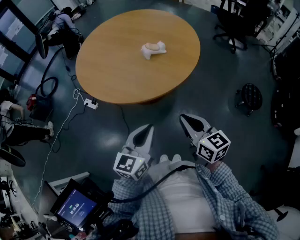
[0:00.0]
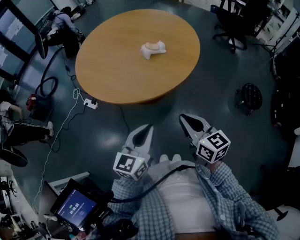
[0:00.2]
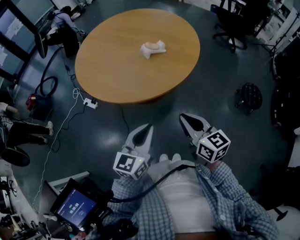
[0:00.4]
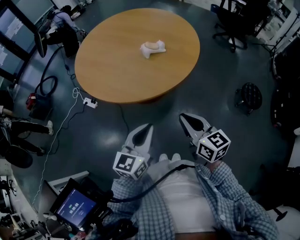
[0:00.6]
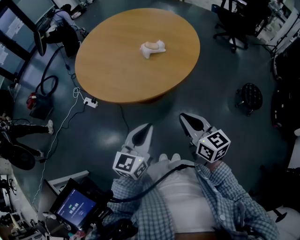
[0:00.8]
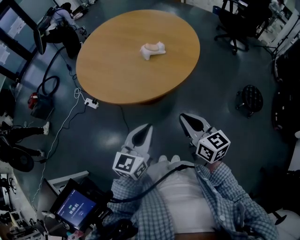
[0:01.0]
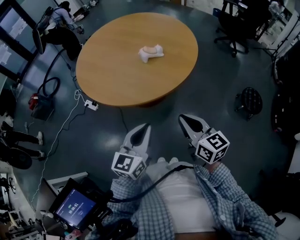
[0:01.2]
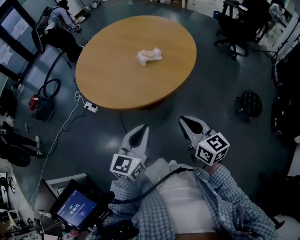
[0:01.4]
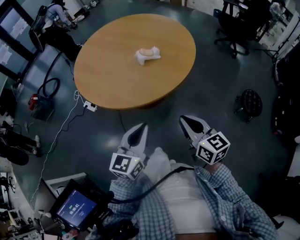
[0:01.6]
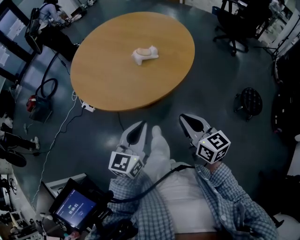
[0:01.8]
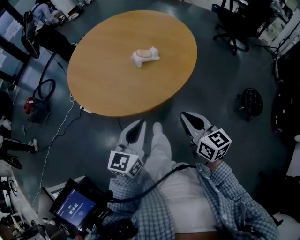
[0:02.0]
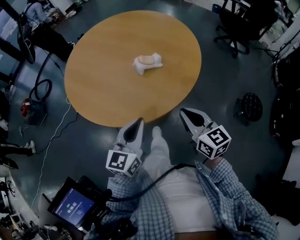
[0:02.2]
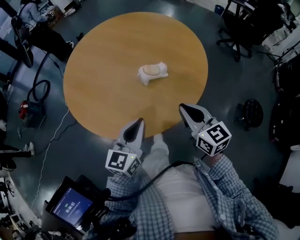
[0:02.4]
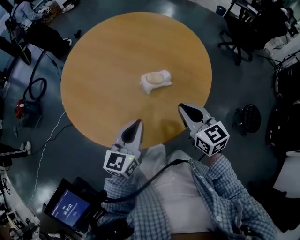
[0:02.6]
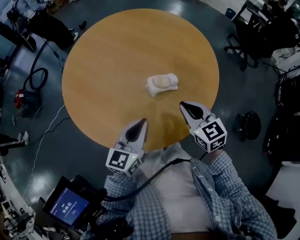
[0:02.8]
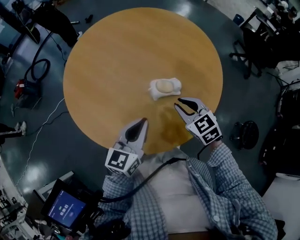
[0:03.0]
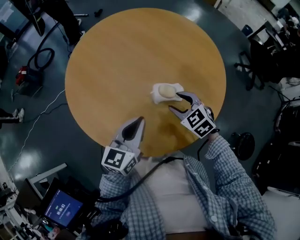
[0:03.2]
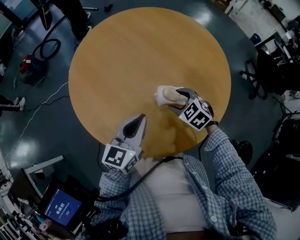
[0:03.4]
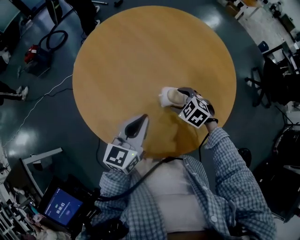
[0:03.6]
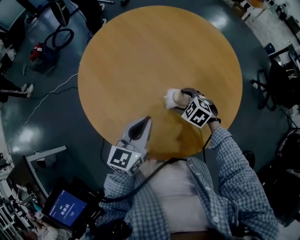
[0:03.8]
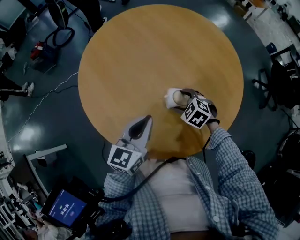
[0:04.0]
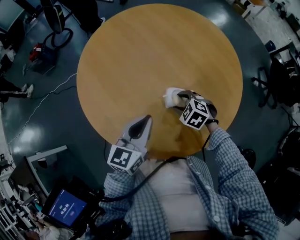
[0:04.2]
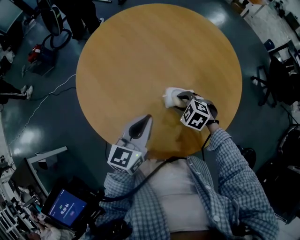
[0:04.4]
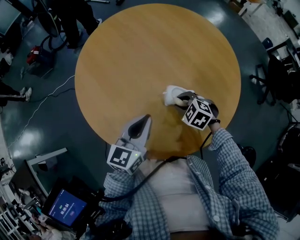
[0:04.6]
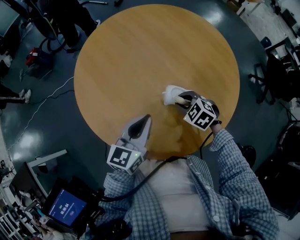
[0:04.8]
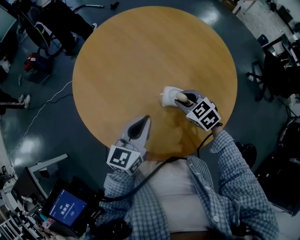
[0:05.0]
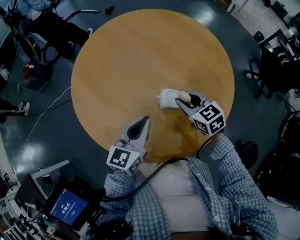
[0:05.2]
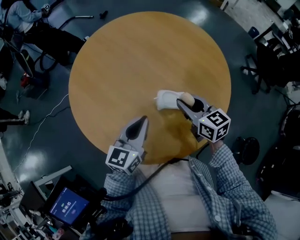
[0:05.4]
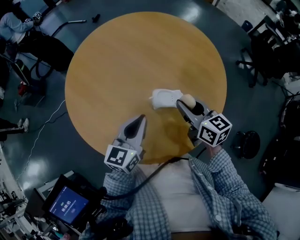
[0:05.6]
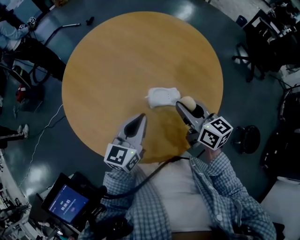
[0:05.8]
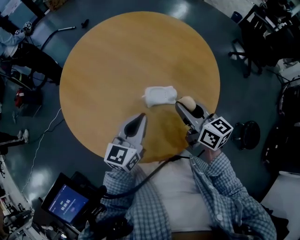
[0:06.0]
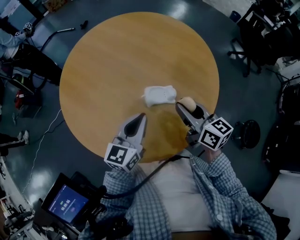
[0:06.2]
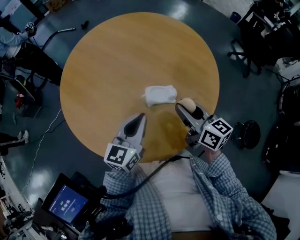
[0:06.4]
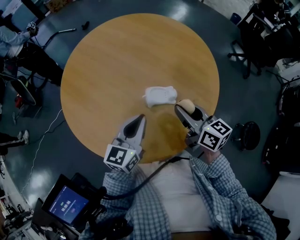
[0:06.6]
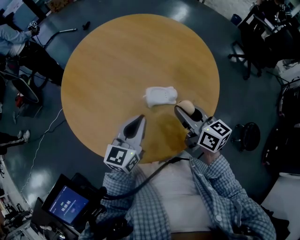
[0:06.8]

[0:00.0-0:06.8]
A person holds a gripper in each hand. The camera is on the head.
0:00.0 to 0:01.4: The grippers stay close to where they were, moving slightly.
0:01.4 to 0:02.8: The grippers both shift forward by approximately 30 cm. The right gripper changes its angle by approximately 30 degrees.
0:02.8 to 0:04.0: The right gripper shifts approximately 15 cm downward, angles its fingers downward, by approximately 40 degrees, and opens; the left gripper changes place by approximately 5 cm.
0:04.0 to 0:05.4: The right gripper is displaced upward by about 15 cm, angles its fingers upward, by roughly 40 degrees, and closes.
0:05.4 to 0:06.8: The right gripper is displaced backward by roughly 5 cm, and swivels about 20 degrees.

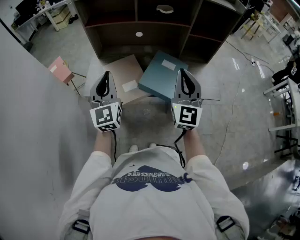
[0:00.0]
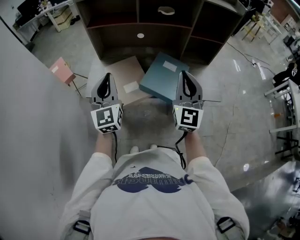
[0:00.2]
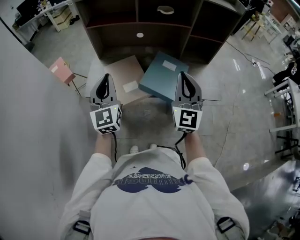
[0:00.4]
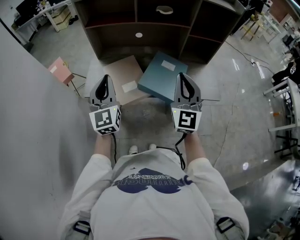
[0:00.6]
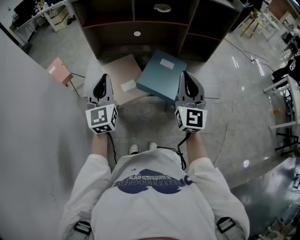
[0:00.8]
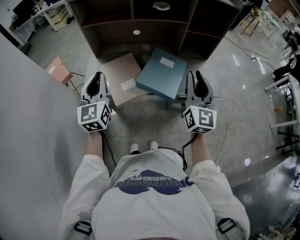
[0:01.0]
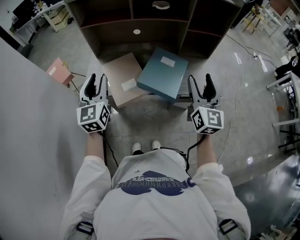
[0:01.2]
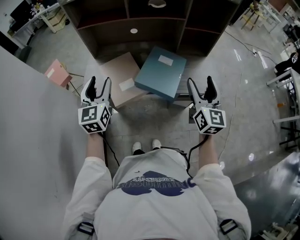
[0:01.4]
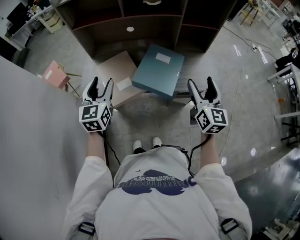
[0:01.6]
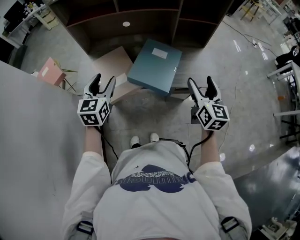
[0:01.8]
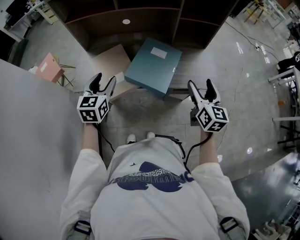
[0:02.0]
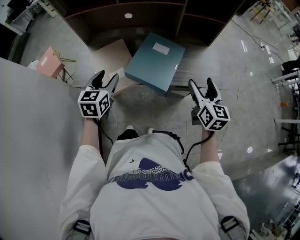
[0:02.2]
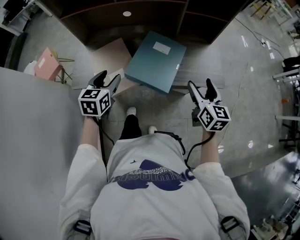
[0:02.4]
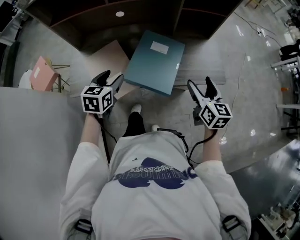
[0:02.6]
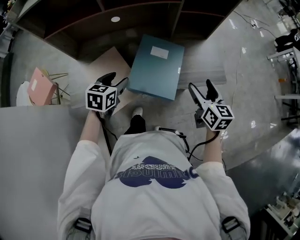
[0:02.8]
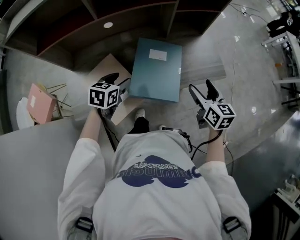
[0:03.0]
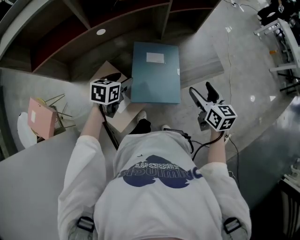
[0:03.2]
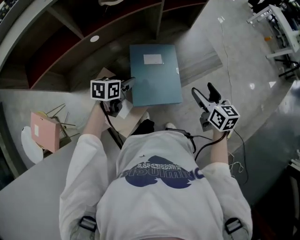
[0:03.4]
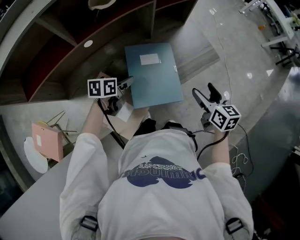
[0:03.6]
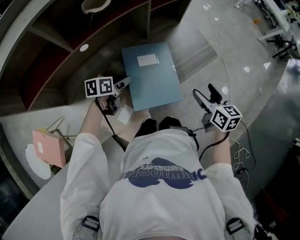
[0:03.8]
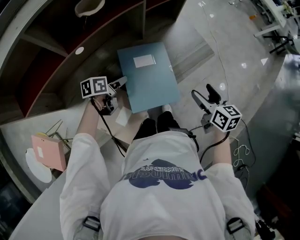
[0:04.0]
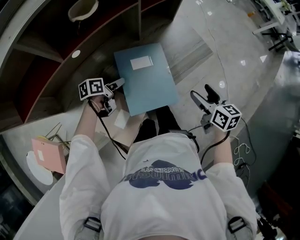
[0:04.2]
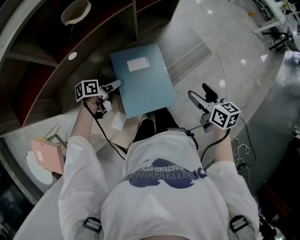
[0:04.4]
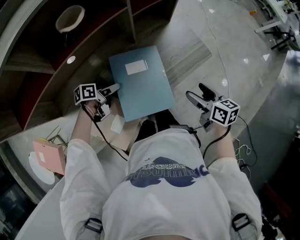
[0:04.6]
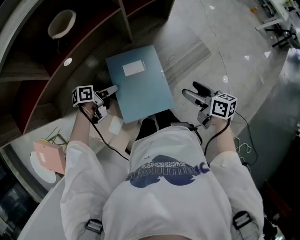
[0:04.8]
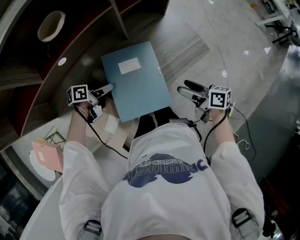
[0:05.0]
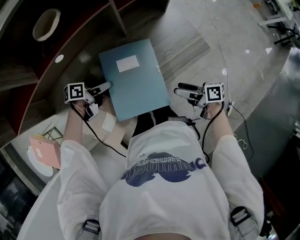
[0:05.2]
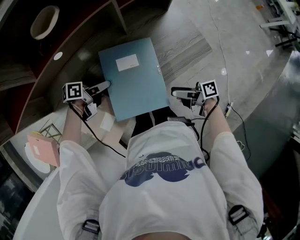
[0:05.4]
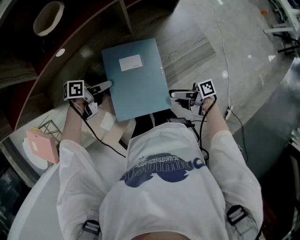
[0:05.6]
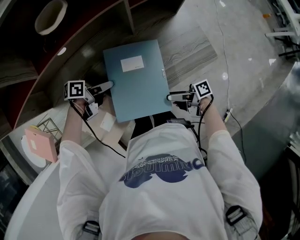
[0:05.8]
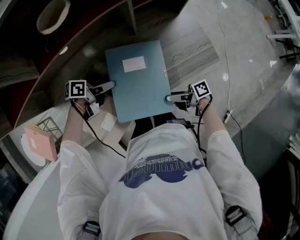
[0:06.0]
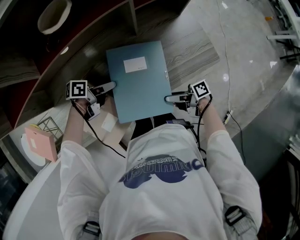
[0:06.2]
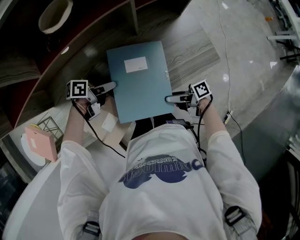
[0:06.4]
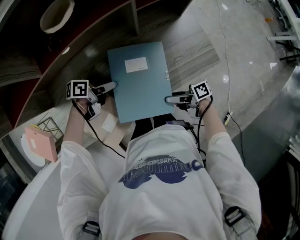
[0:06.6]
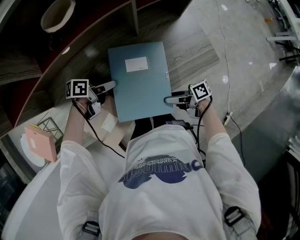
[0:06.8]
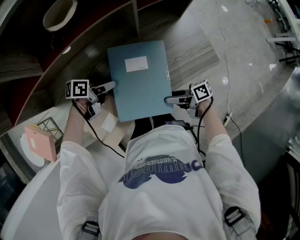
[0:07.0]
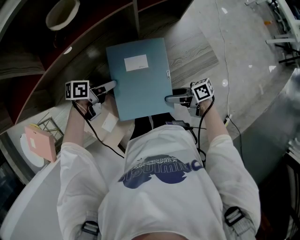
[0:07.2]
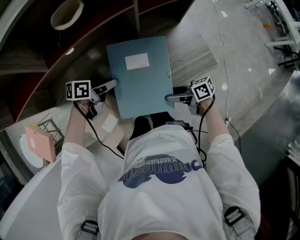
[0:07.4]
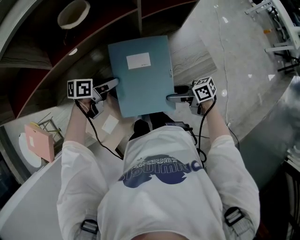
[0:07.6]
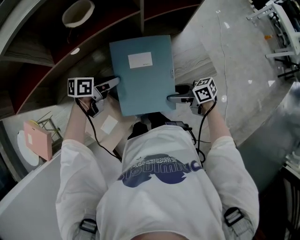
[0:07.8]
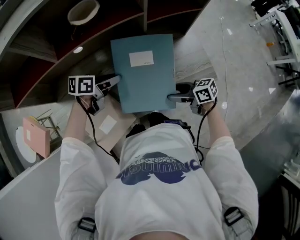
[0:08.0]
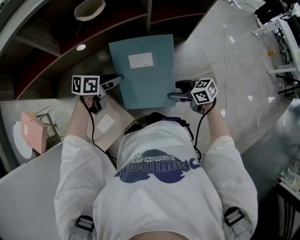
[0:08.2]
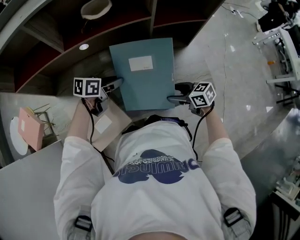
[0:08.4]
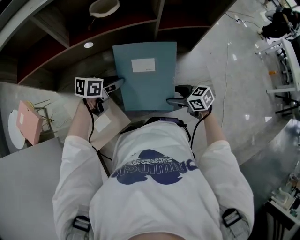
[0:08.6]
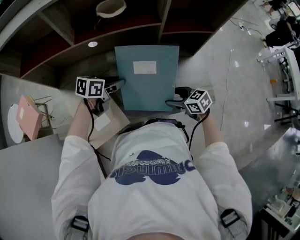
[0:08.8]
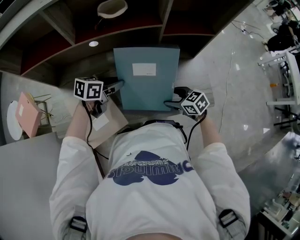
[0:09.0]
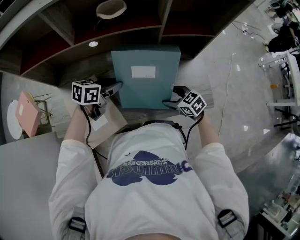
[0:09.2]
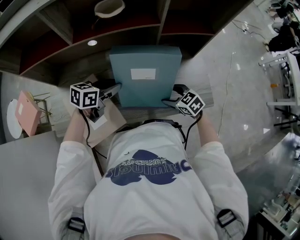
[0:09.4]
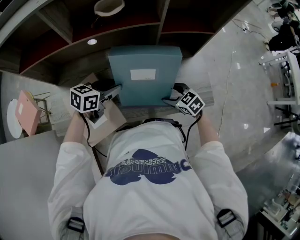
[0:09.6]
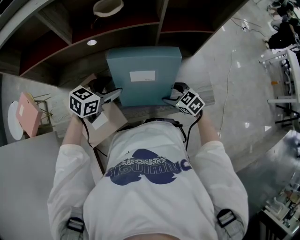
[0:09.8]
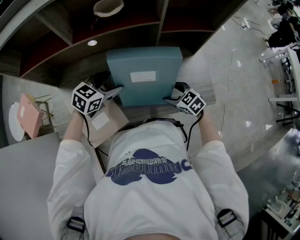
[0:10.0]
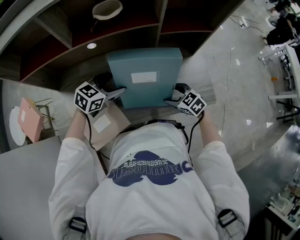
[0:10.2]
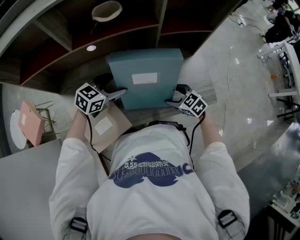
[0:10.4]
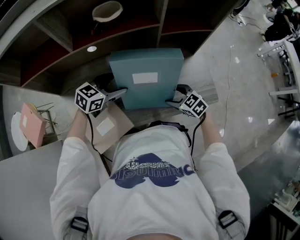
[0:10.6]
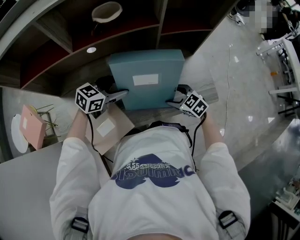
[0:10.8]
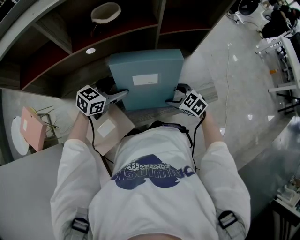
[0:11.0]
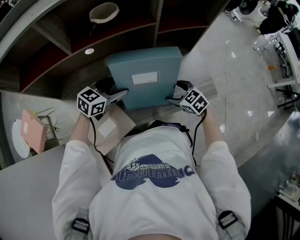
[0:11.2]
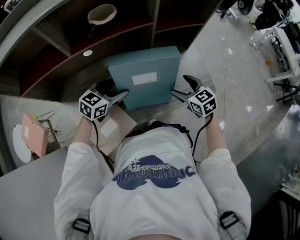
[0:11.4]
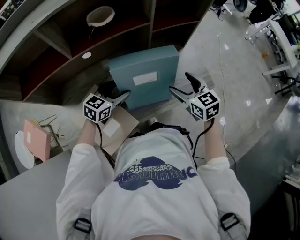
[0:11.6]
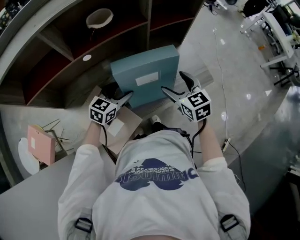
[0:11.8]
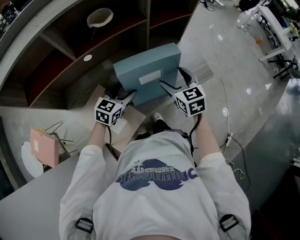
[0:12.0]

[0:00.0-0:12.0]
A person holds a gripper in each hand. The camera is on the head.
0:00.0 to 0:01.6: The right gripper travels to the right and downward by roughly 15 cm, turns by roughly 30 degrees, and opens up. Meanwhile the left gripper travels downward by approximately 5 cm, swivels roughly 20 degrees, and opens.
0:01.6 to 0:03.0: The left gripper shifts approximately 25 cm forward and downward, and angles its fingers downward, by some 30 degrees. The right gripper goes some 15 cm downward and forward, and swivels approximately 30 degrees.
0:03.0 to 0:04.4: The right gripper ends up roughly 5 cm from where it was. The left gripper goes roughly 15 cm forward and downward, and swivels roughly 50 degrees.
0:04.4 to 0:06.0: The right gripper shifts approximately 15 cm downward, and rotates some 70 degrees.
0:06.0 to 0:07.6: The right gripper shifts by approximately 5 cm, and rotates approximately 30 degrees; the left gripper travels upward by approximately 5 cm.
0:07.6 to 0:09.0: The right gripper shifts by approximately 5 cm, and twists roughly 40 degrees counterclockwise, seen from behind; the left gripper swivels roughly 20 degrees.
0:09.0 to 0:10.4: The left gripper turns by about 30 degrees, and opens.
0:10.4 to 0:12.0: The right gripper travels upward by roughly 15 cm, and rotates some 50 degrees.

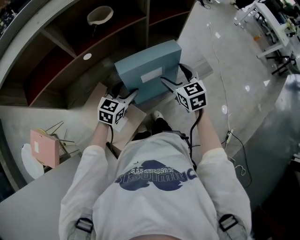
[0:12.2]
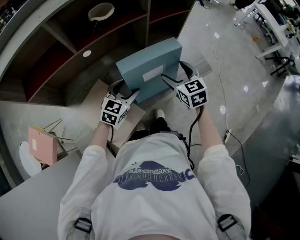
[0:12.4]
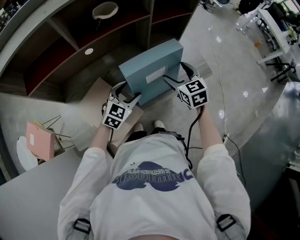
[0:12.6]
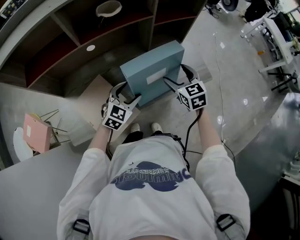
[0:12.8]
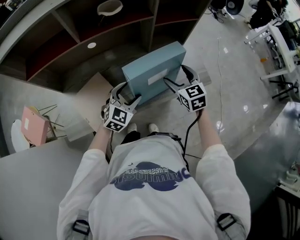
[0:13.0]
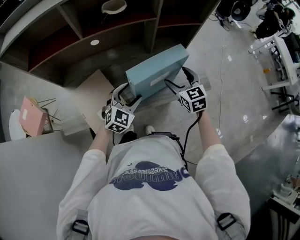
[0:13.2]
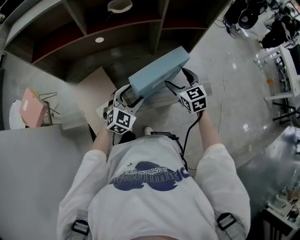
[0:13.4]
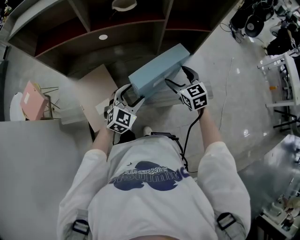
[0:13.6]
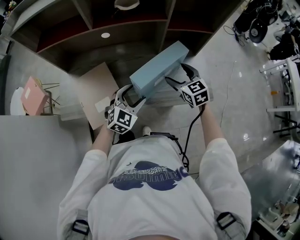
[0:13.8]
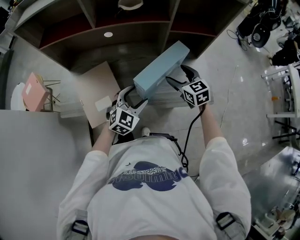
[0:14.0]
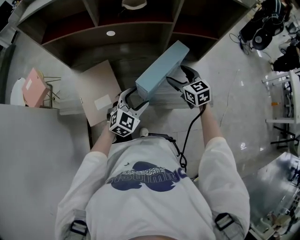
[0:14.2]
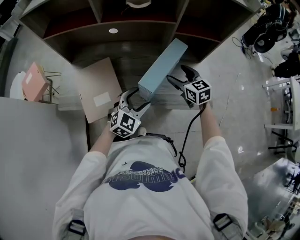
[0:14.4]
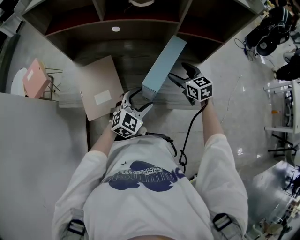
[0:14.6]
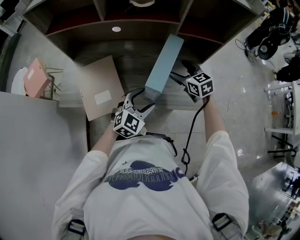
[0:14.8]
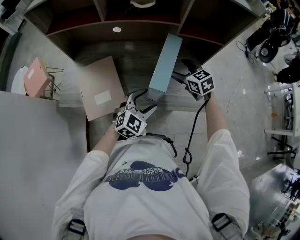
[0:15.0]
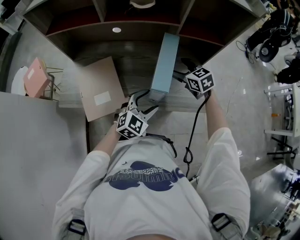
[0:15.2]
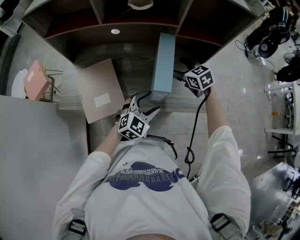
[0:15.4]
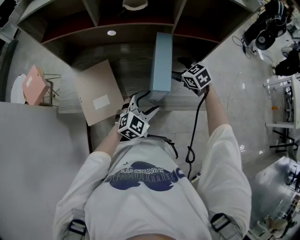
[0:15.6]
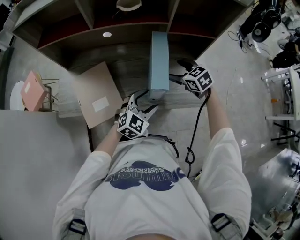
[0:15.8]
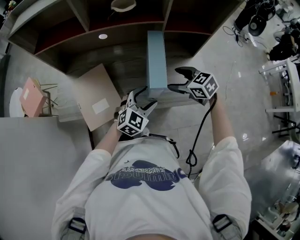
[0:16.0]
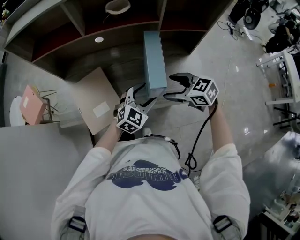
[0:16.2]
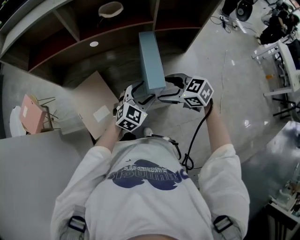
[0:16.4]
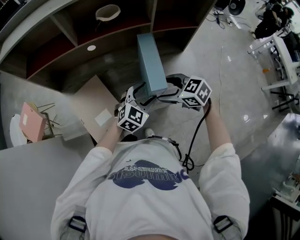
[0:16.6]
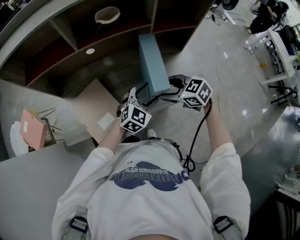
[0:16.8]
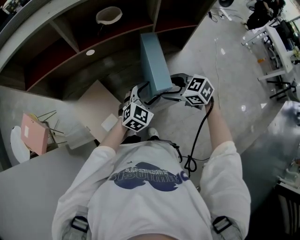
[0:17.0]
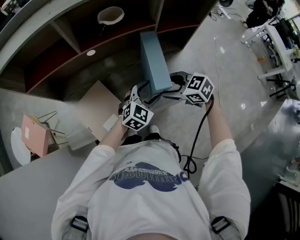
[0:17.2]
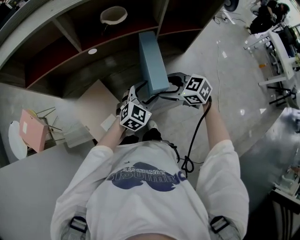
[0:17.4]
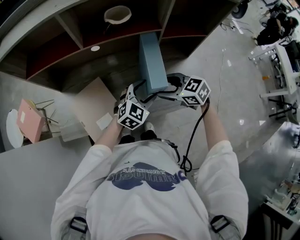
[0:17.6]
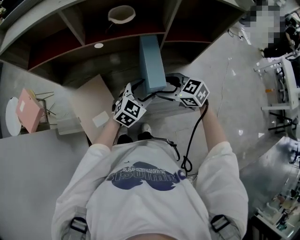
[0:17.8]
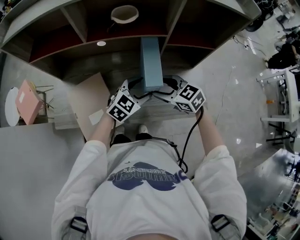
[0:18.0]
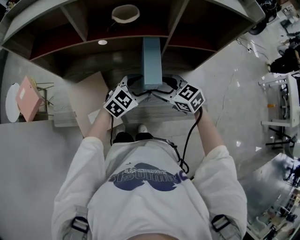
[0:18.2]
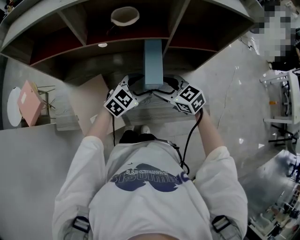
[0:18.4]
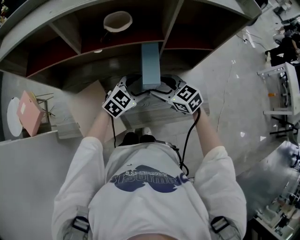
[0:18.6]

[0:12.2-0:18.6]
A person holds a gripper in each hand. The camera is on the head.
0:12.2 to 0:13.8: The left gripper moves approximately 10 cm, and turns by some 30 degrees, while the right gripper changes place by about 5 cm, and swivels some 30 degrees.
0:13.8 to 0:15.4: The left gripper shifts roughly 5 cm to the right. The right gripper is displaced forward by approximately 5 cm.
0:15.4 to 0:17.0: The right gripper shifts roughly 15 cm backward and to the left, while the left gripper heads forward, covering some 5 cm.
0:17.0 to 0:18.6: The two grippers go some 10 cm forward.
